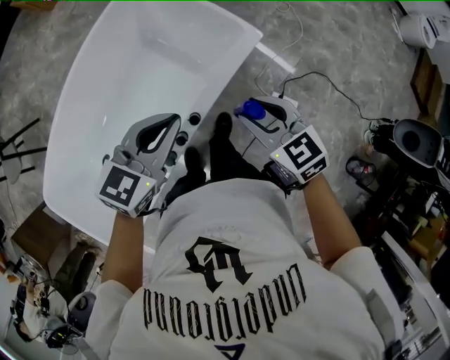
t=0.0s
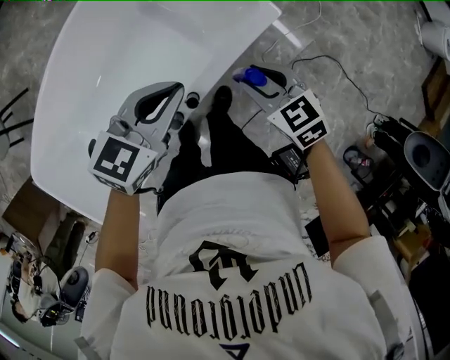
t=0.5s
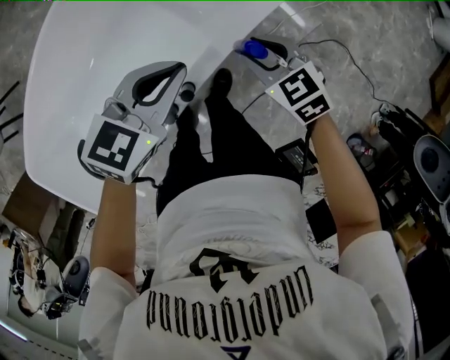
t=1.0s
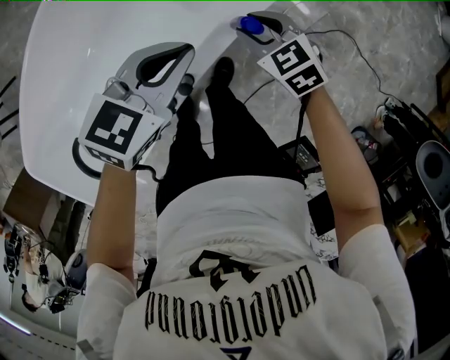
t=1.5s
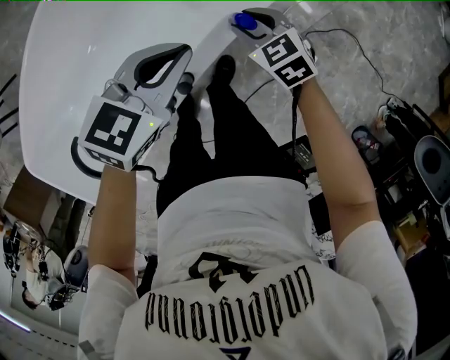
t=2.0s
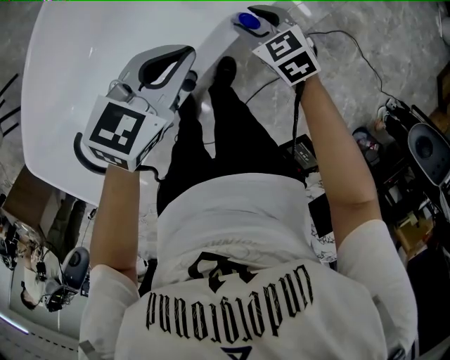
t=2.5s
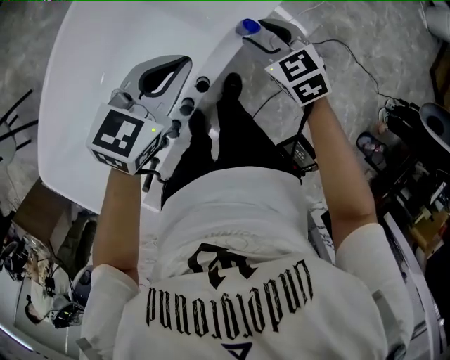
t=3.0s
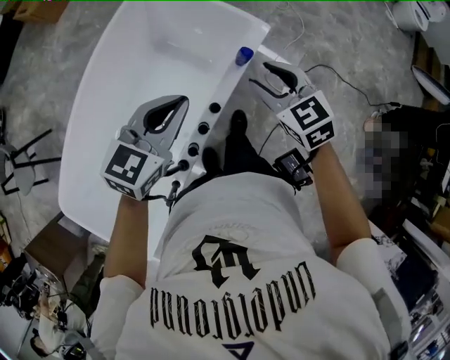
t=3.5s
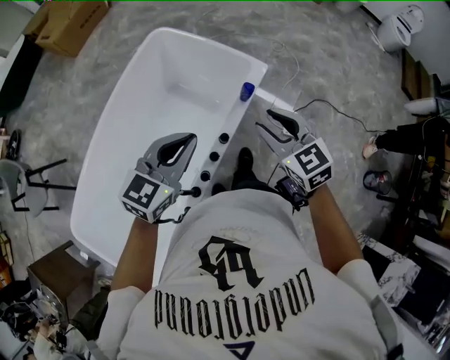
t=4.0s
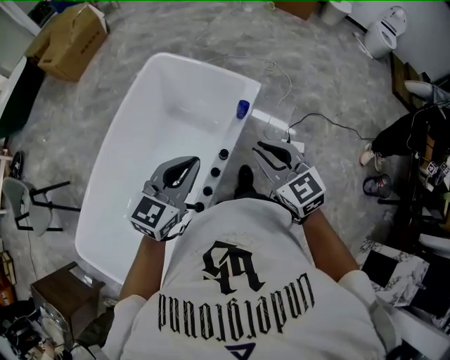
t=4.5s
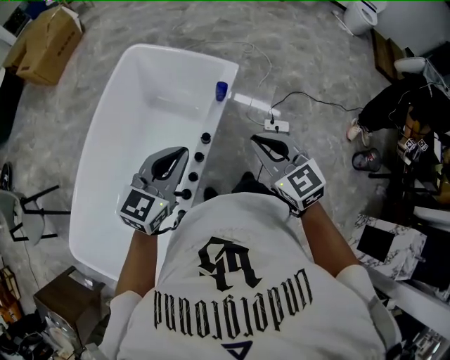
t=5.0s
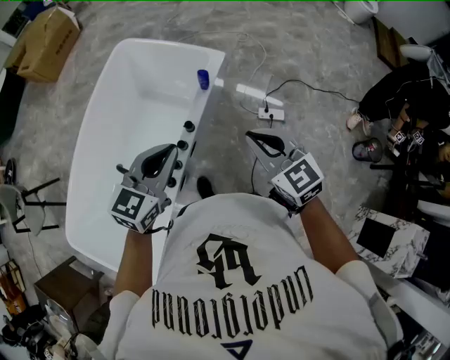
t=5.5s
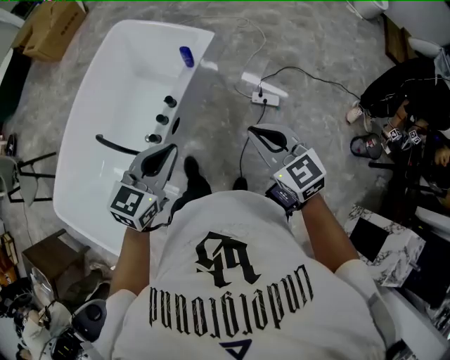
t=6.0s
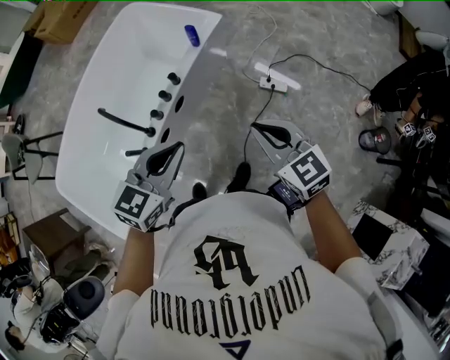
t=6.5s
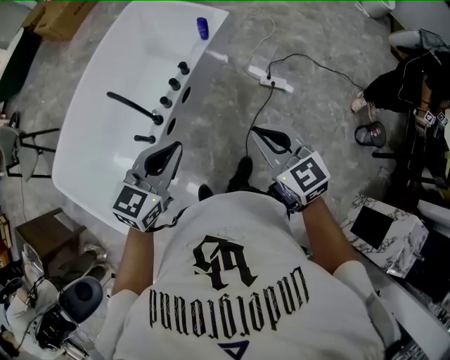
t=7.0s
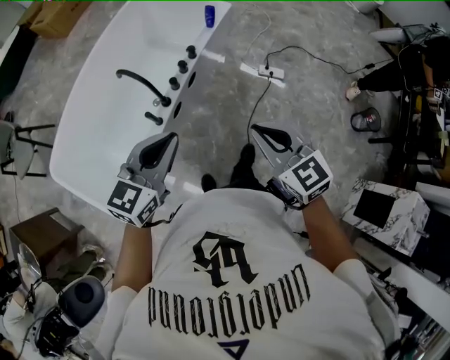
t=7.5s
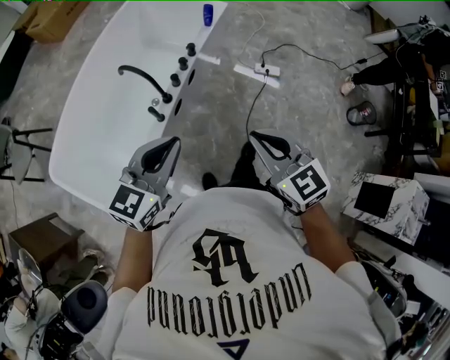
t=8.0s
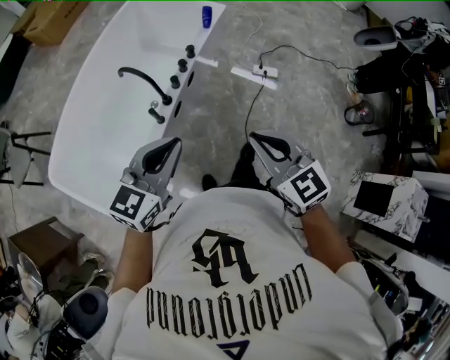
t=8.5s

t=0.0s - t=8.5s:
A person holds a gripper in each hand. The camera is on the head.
t=0.0s - t=2.0s: The two grippers go approximately 25 cm downward and forward.
t=2.0s - t=4.0s: The left gripper shifts approximately 30 cm upward, backward and to the left, and rotates about 20 degrees. The right gripper heads upward and backward, covering some 40 cm, and rotates some 30 degrees.
t=4.0s - t=6.5s: Both grippers move backward and to the right, about 35 cm. The right gripper closes.
t=6.5s - t=8.5s: The left gripper goes about 30 cm to the left and backward. Meanwhile the right gripper shifts some 30 cm backward and to the left.

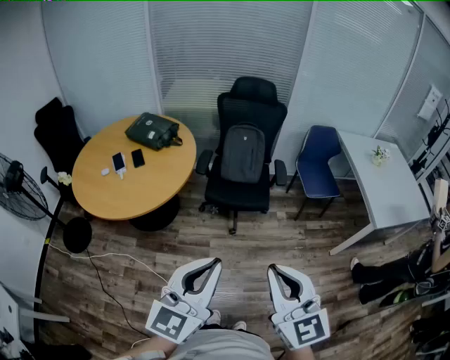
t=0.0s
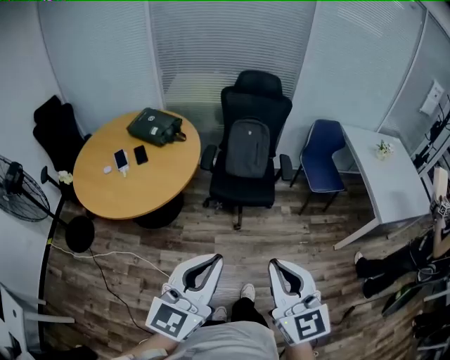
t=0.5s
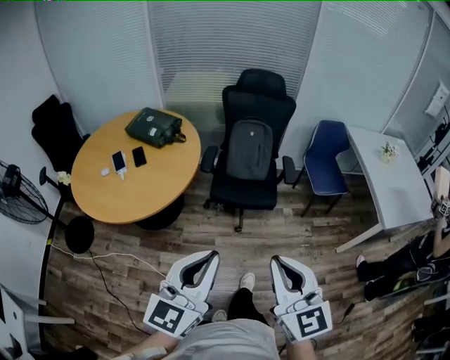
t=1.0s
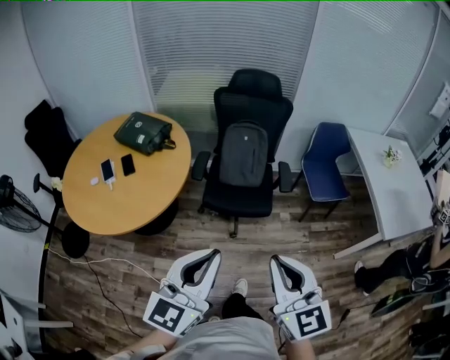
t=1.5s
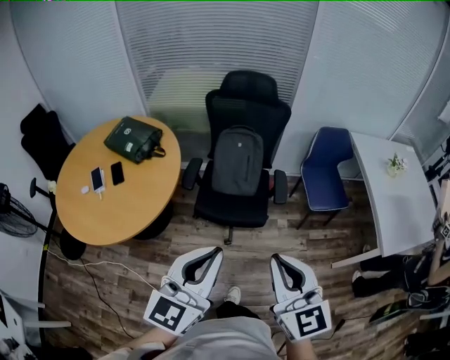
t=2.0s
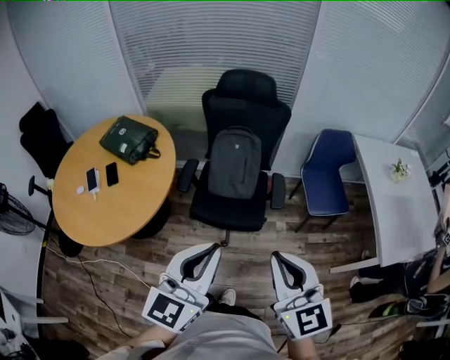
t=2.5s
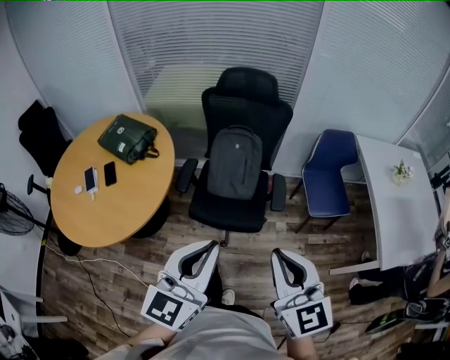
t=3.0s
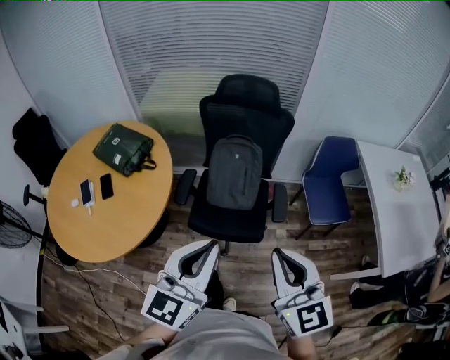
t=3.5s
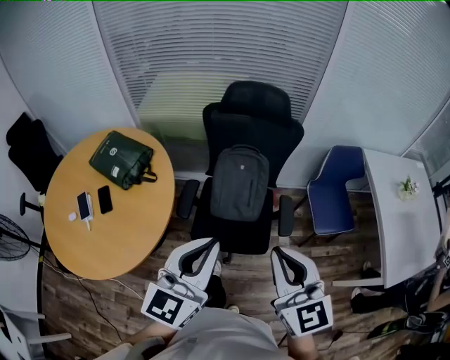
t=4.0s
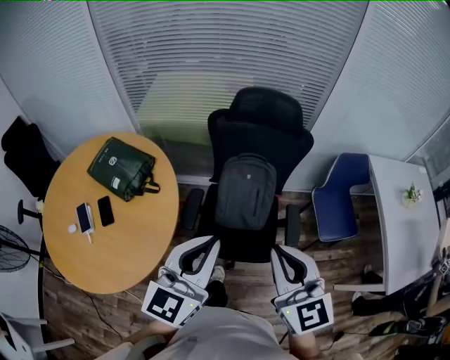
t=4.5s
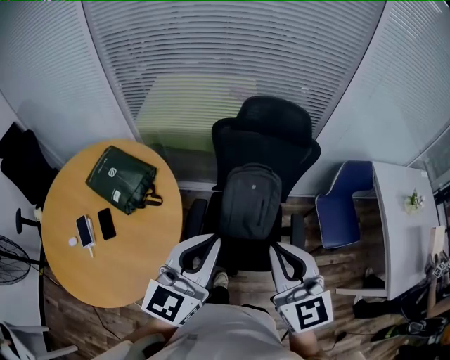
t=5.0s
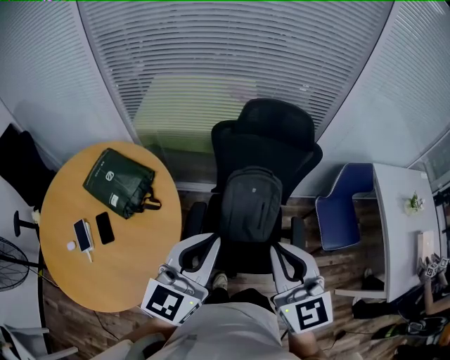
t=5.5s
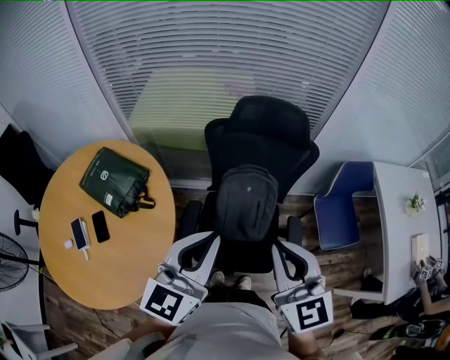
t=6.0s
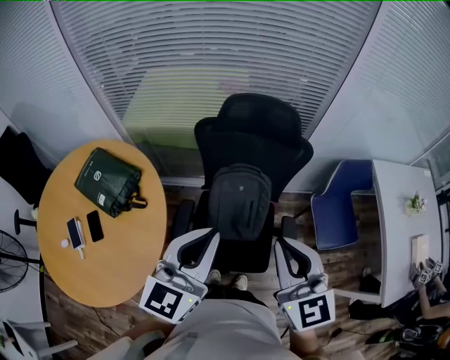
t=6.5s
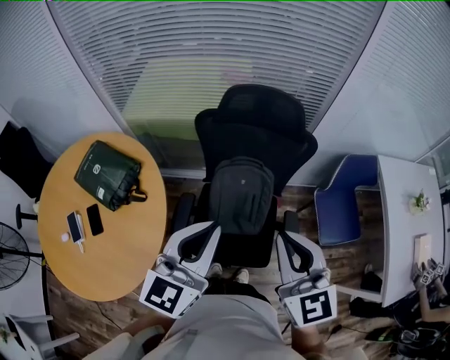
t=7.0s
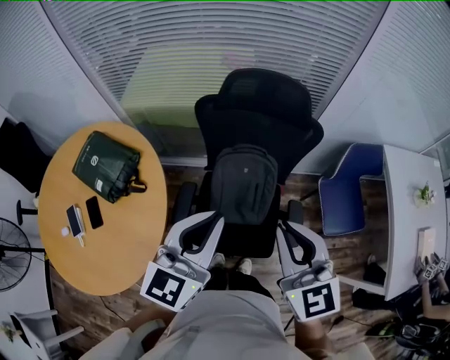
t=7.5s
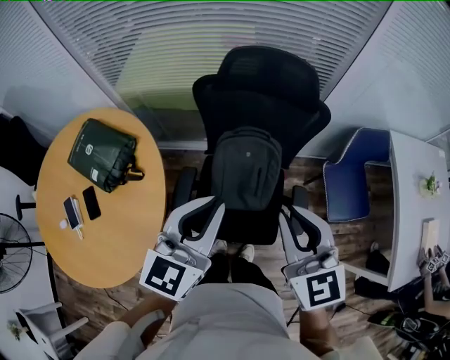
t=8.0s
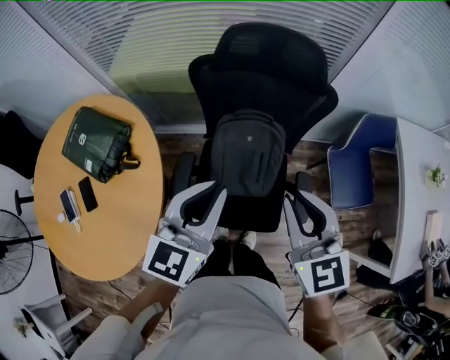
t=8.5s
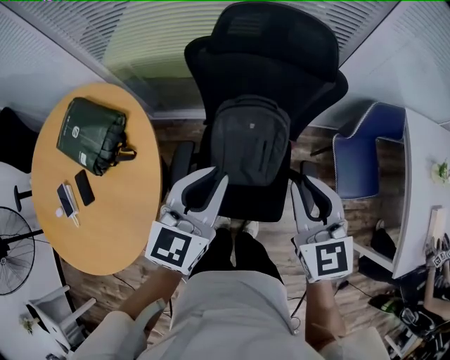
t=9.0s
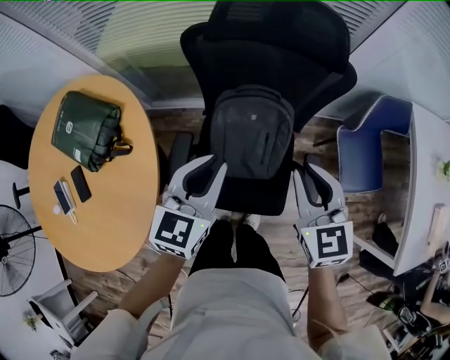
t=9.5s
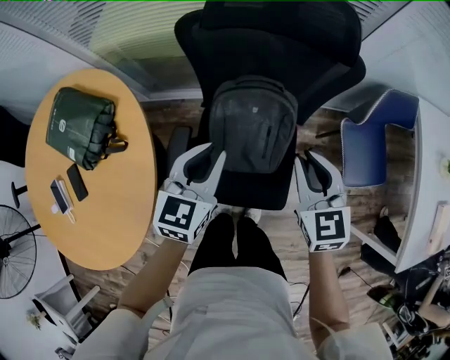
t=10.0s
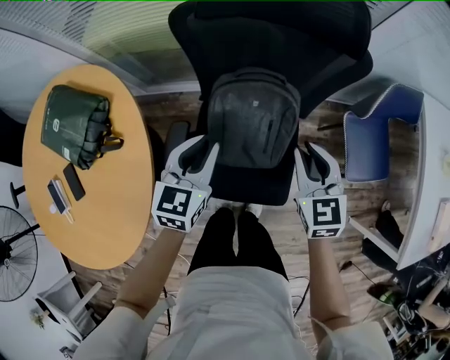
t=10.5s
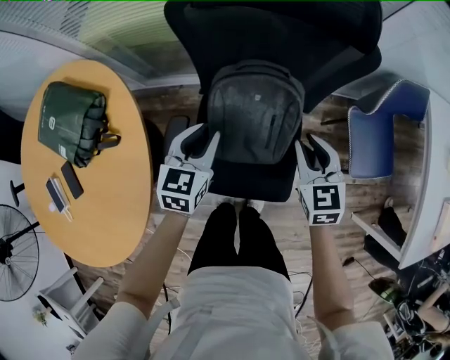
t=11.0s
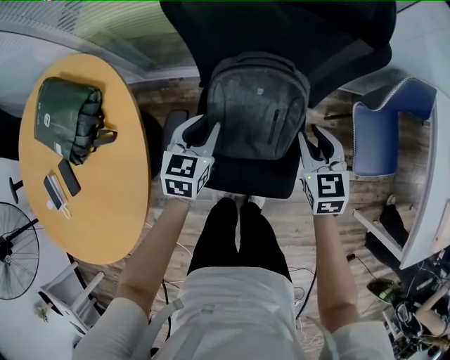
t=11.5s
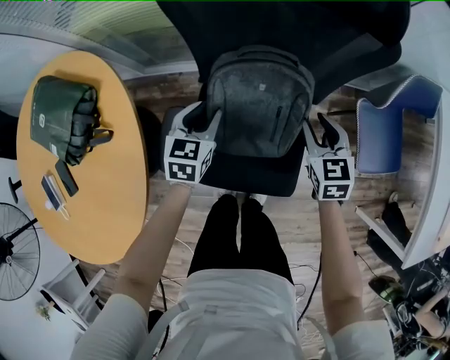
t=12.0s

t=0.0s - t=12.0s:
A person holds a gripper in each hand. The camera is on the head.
t=0.0s - t=2.0s: Both grippers move forward, some 30 cm.
t=2.0s - t=4.0s: Both grippers move forward, about 25 cm.
t=4.0s - t=6.0s: Both grippers travel together forward, about 20 cm.
t=6.0s - t=8.0s: The right gripper moves forward and downward, approximately 10 cm, while the left gripper travels downward and forward by some 10 cm.
t=8.0s - t=10.0s: Both grippers travel together downward and forward, some 25 cm.
t=10.0s - t=12.0s: The left gripper goes about 20 cm downward. The right gripper shifts some 20 cm downward and forward.

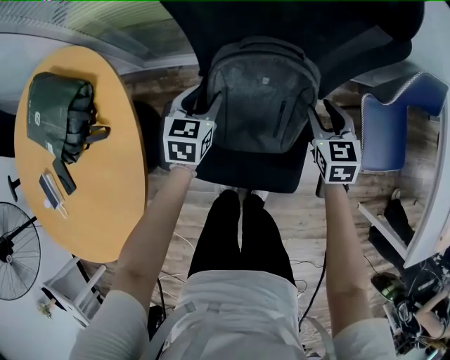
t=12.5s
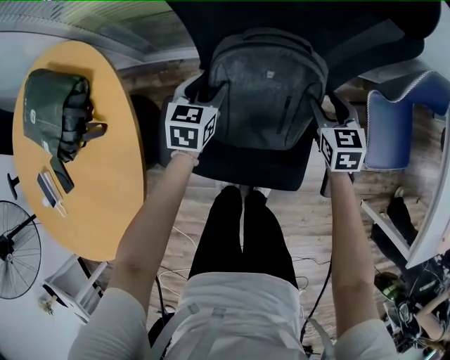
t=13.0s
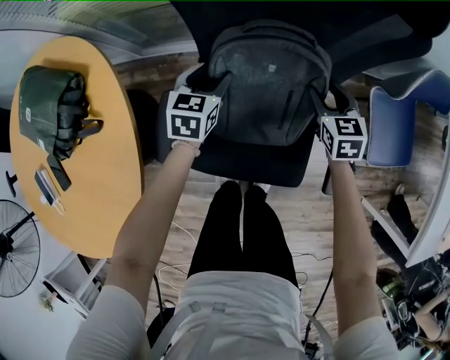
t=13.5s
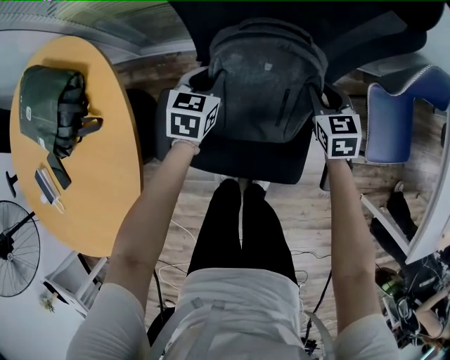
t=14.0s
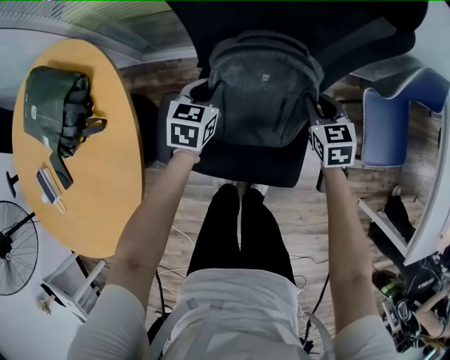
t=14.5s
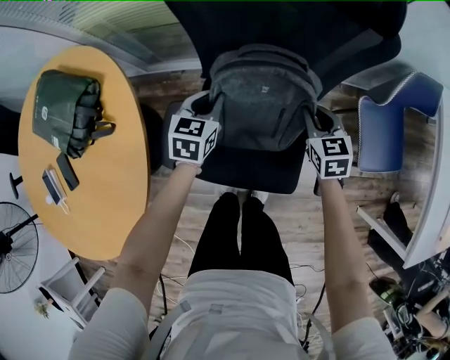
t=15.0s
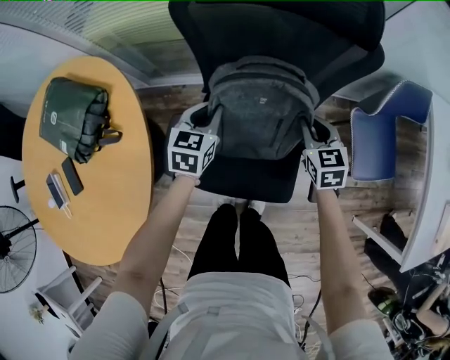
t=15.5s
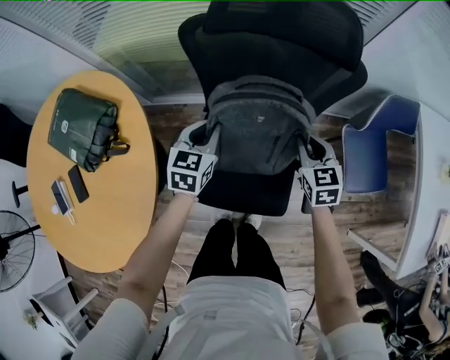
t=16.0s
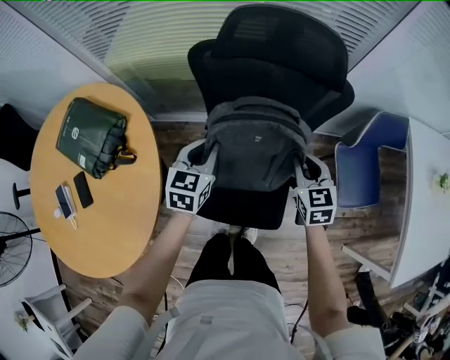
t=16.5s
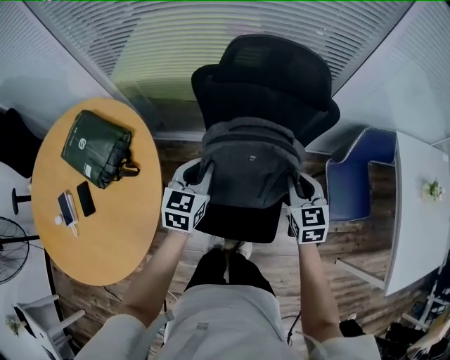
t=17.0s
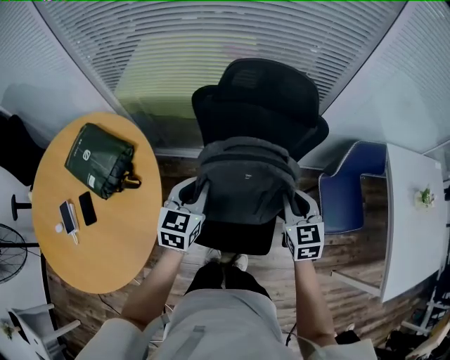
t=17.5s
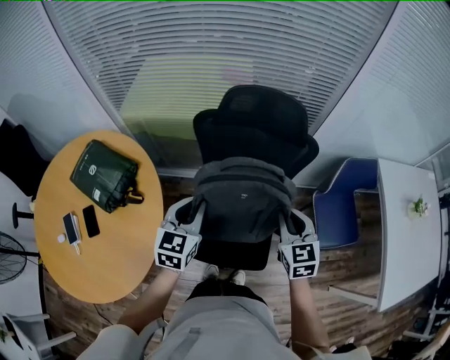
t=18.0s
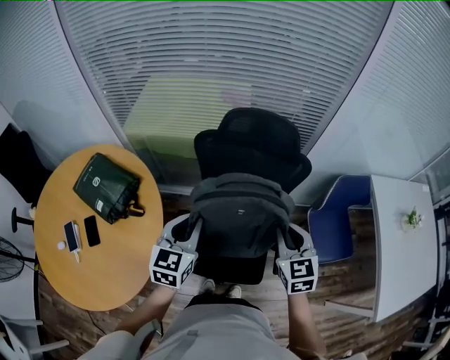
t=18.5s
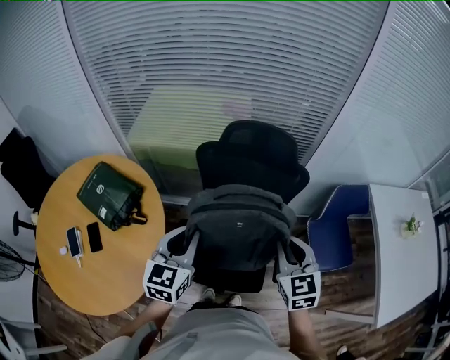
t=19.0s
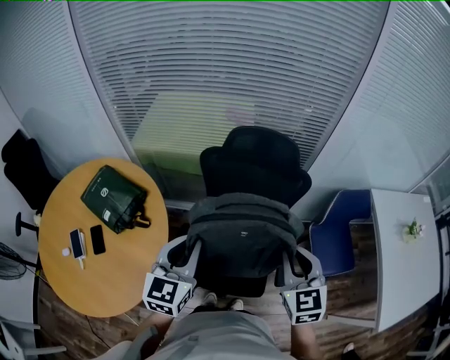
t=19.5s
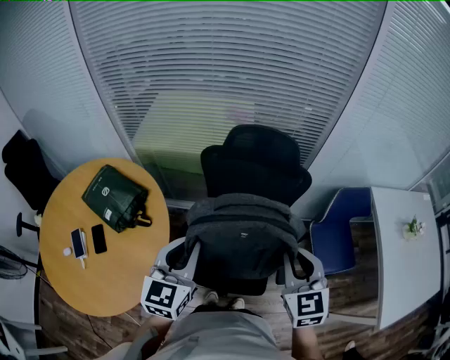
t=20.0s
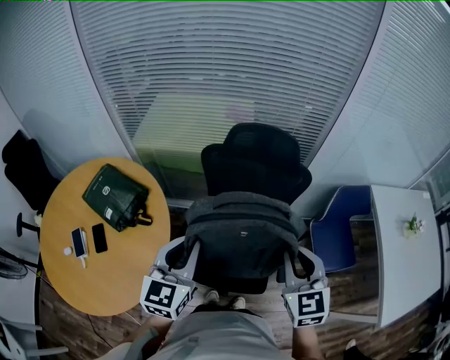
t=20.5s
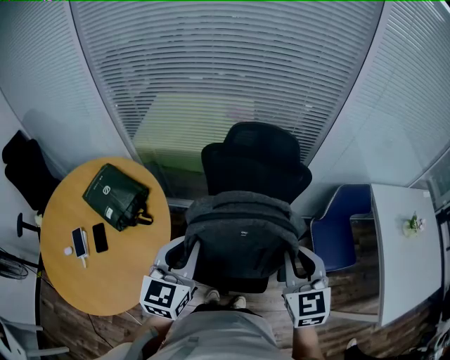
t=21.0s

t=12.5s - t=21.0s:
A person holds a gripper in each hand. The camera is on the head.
t=12.5s - t=14.5s: The right gripper closes its fingers; the left gripper closes up.
t=14.5s - t=16.5s: Both grippers move upward, some 20 cm.
t=16.5s - t=19.0s: Both grippers move upward and backward, some 25 cm.
t=19.0s - t=21.0s: The left gripper ends up about 5 cm from where it was. Meanwhile the right gripper heads upward and backward, covering approximately 5 cm.
